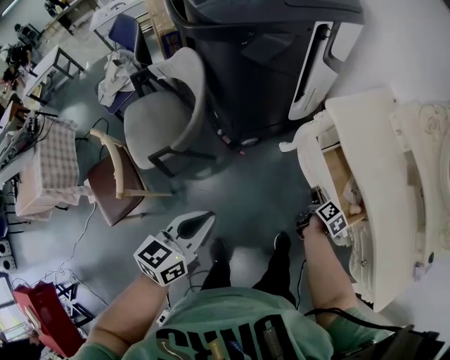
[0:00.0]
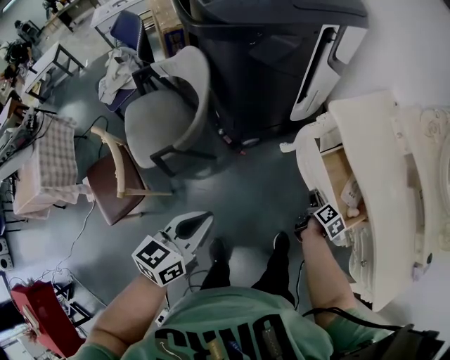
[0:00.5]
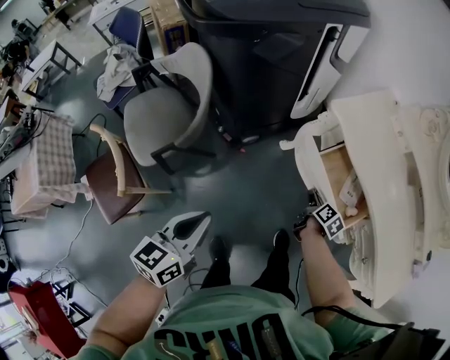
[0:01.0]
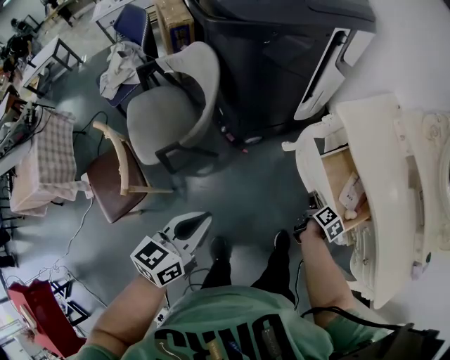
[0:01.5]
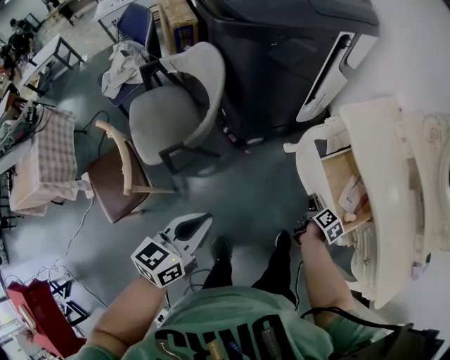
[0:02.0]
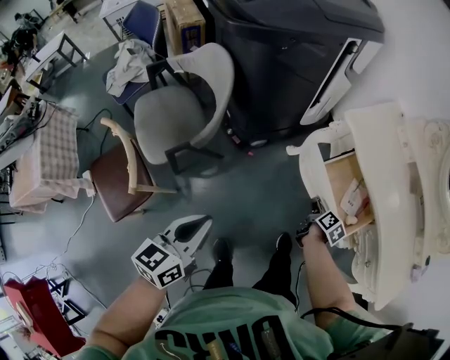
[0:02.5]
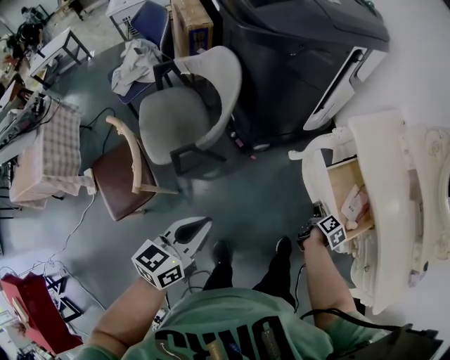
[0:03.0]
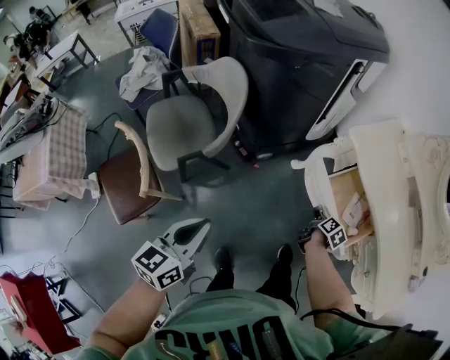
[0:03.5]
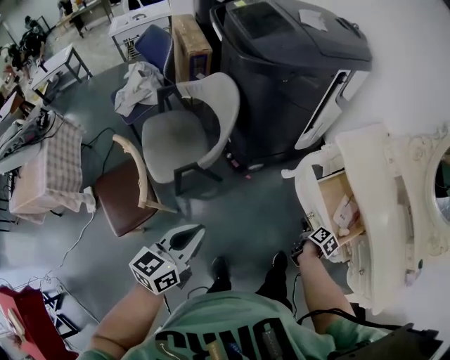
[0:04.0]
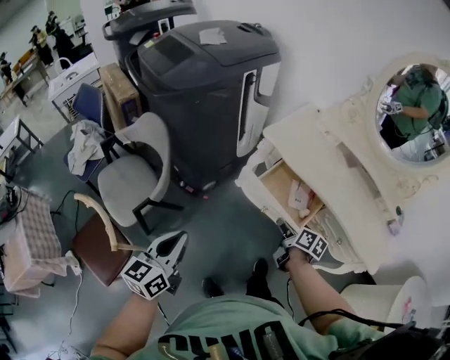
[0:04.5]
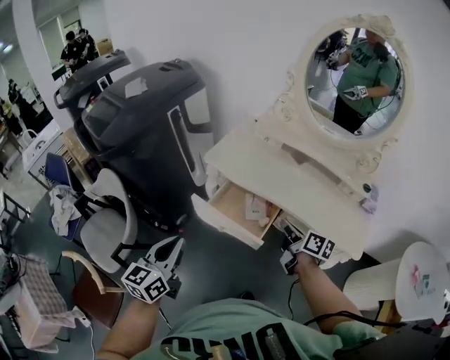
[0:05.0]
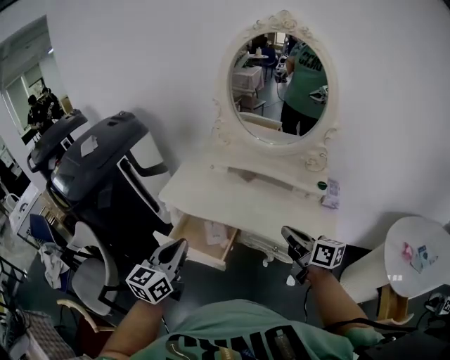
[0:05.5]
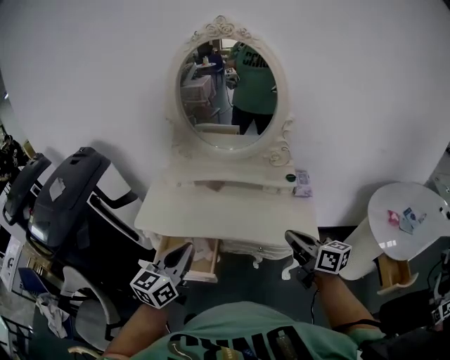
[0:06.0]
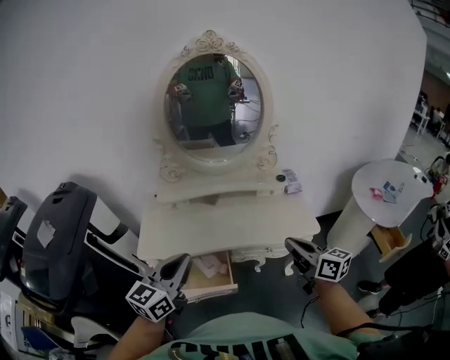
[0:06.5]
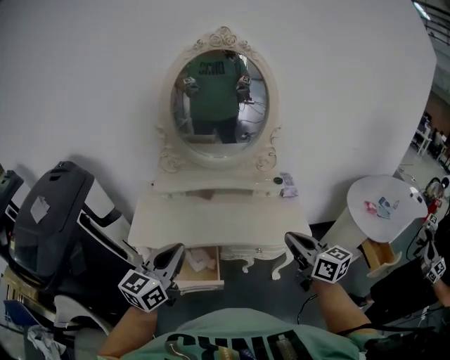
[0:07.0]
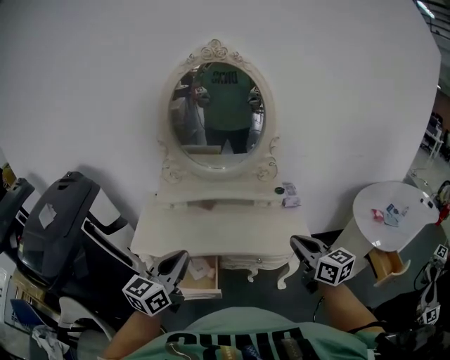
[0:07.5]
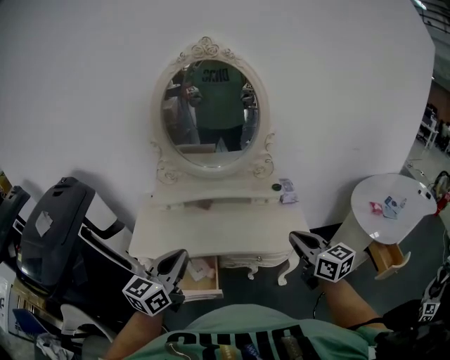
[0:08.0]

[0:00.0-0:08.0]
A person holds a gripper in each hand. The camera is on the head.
0:00.0 to 0:02.0: The left gripper is displaced to the left by some 5 cm; the right gripper ends up approximately 5 cm from where it was.
0:02.0 to 0:04.0: The right gripper moves backward, approximately 5 cm. Meanwhile the left gripper travels to the left by approximately 5 cm.
0:04.0 to 0:06.0: The left gripper ends up roughly 60 cm from where it was, and rotates about 60 degrees. The right gripper changes place by roughly 60 cm, points its fingers approximately 50 degrees further upward, and closes its fingers.
0:06.0 to 0:08.0: The right gripper heads upward, covering roughly 5 cm, reaches roughly 10 cm to the left, then returns, and turns by some 30 degrees. The left gripper travels to the left by approximately 5 cm.

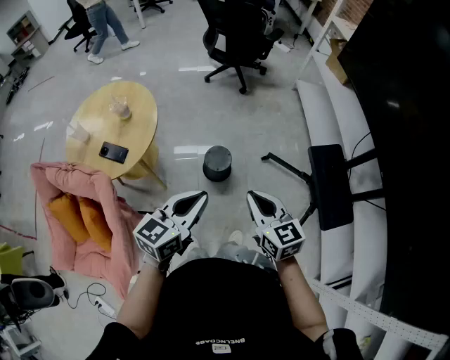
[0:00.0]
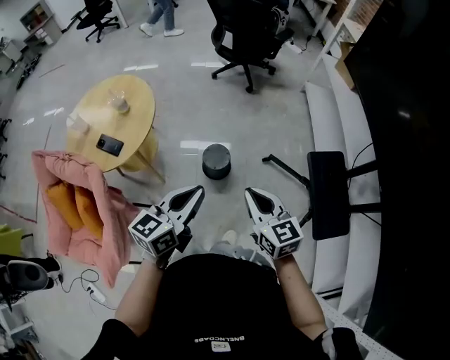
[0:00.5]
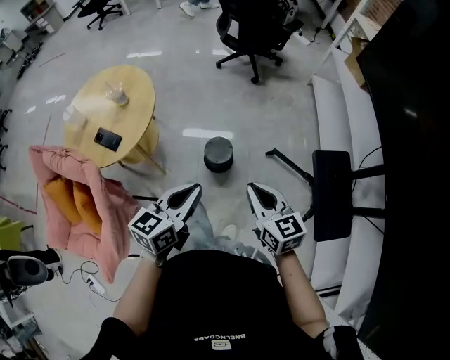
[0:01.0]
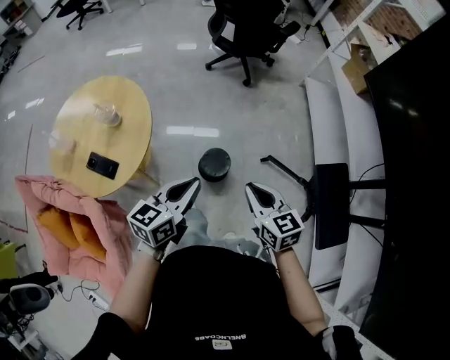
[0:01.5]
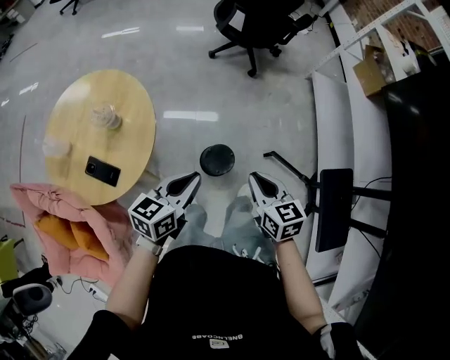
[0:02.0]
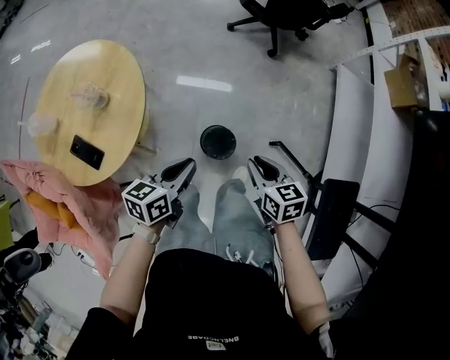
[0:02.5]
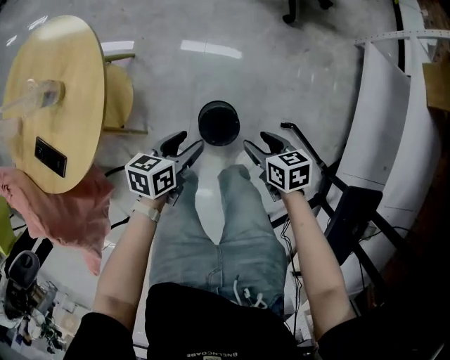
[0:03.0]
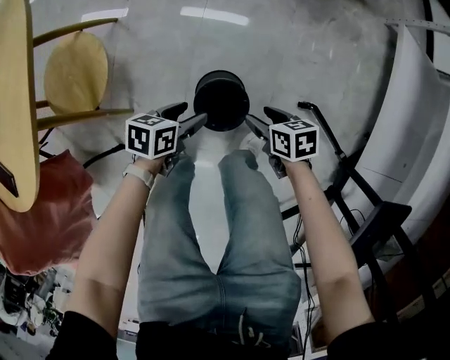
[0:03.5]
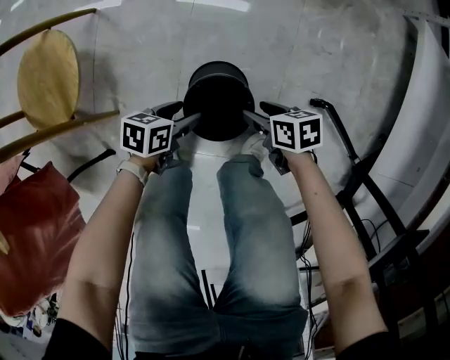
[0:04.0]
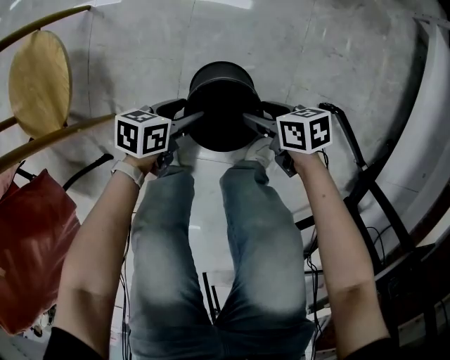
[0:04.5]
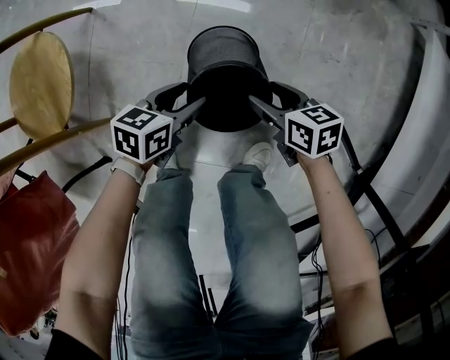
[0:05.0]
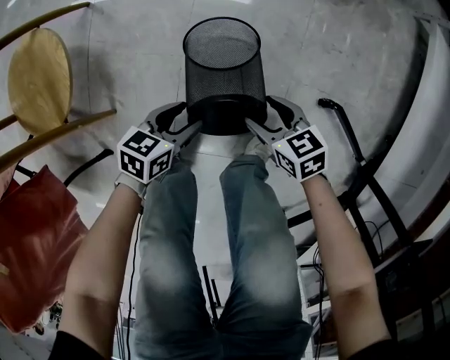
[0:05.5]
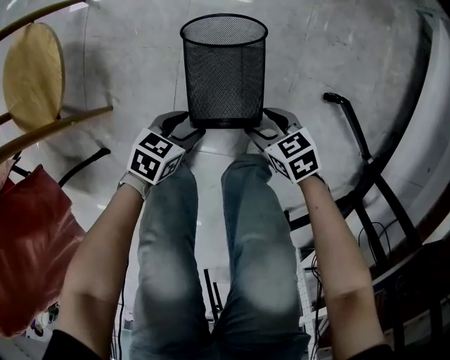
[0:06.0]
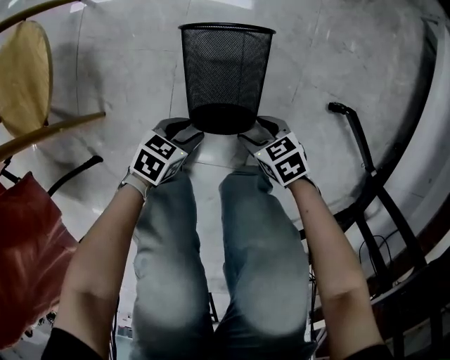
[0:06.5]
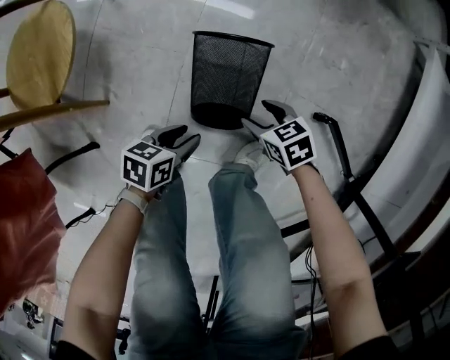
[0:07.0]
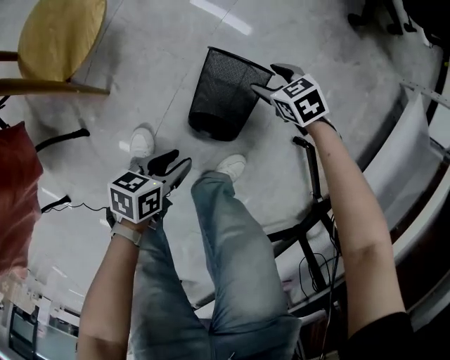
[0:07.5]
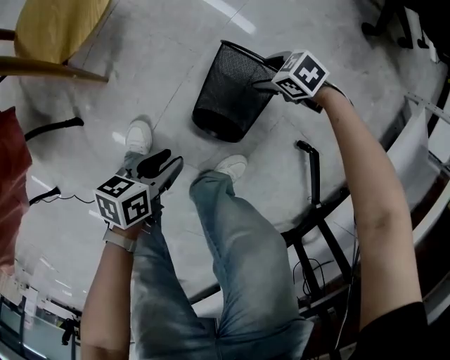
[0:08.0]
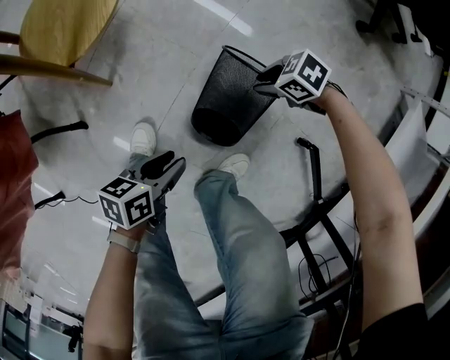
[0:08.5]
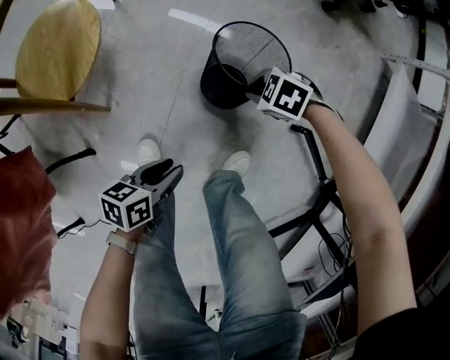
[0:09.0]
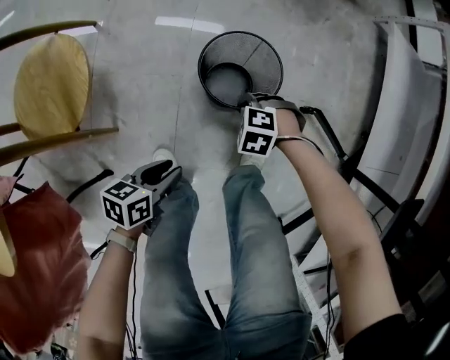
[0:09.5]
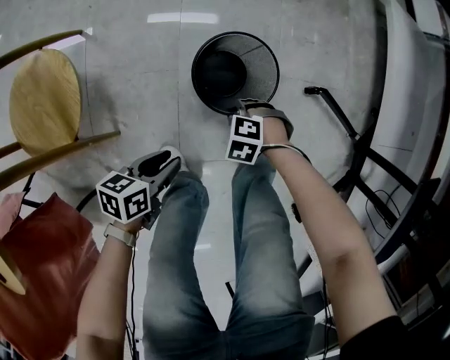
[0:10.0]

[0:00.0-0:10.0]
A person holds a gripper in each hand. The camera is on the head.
0:00.0 to 0:02.0: The right gripper goes roughly 20 cm forward; the left gripper shifts some 25 cm forward and downward.
0:02.0 to 0:04.0: Both grippers move downward, roughly 60 cm. The left gripper turns by about 40 degrees, and opens its fingers. Meanwhile the right gripper rotates roughly 50 degrees, and opens its fingers.
0:04.0 to 0:06.0: The left gripper ends up about 10 cm from where it was. Meanwhile the right gripper changes place by some 5 cm, and rotates some 30 degrees.
0:06.0 to 0:08.0: The right gripper goes up and down, some 10 cm each way, reversing 2 times, and twists about 40 degrees counterclockwise, seen from behind, while the left gripper goes about 10 cm upward, and rotates around the line of its fingers by roughly 40 degrees, counterclockwise from behind.
0:08.0 to 0:10.0: The right gripper goes upward and returns, approximately 10 cm each way, changes its angle by roughly 20 degrees, and closes up. Meanwhile the left gripper ends up about 5 cm from where it was, and rotates some 30 degrees.

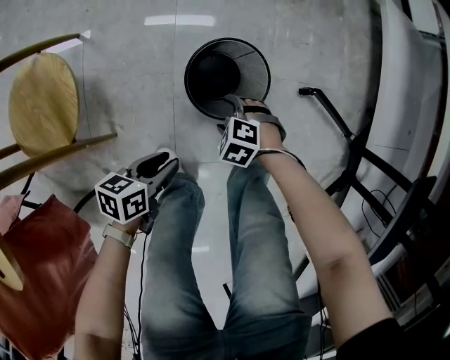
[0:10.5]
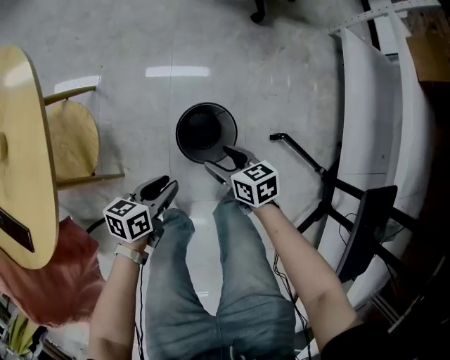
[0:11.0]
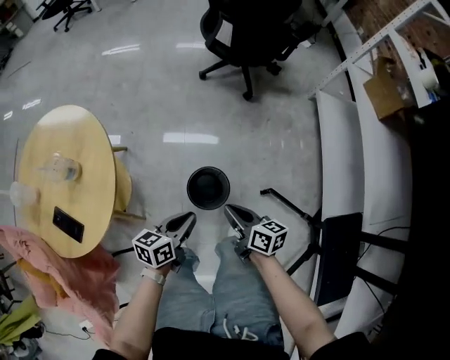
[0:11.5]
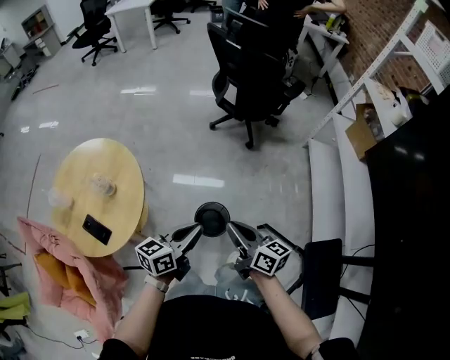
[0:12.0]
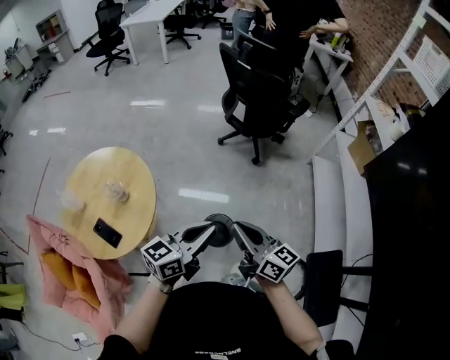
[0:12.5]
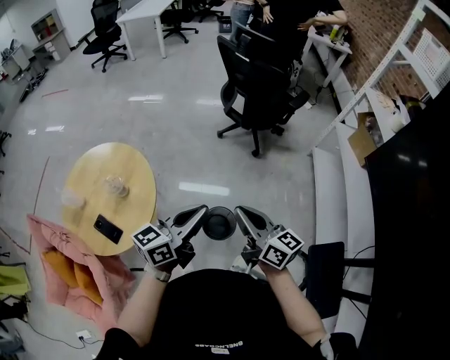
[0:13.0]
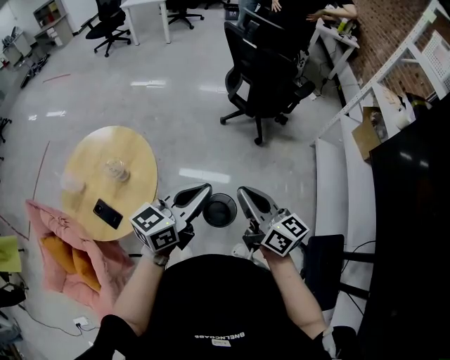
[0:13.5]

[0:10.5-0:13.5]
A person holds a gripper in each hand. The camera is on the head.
0:10.5 to 0:12.0: Both grippers move upward, approximately 60 cm. The right gripper angles its fingers upward, by approximately 70 degrees, and closes its fingers. Meanwhile the left gripper turns by about 40 degrees, and closes.
0:12.0 to 0:13.5: Both grippers move upward, about 15 cm.

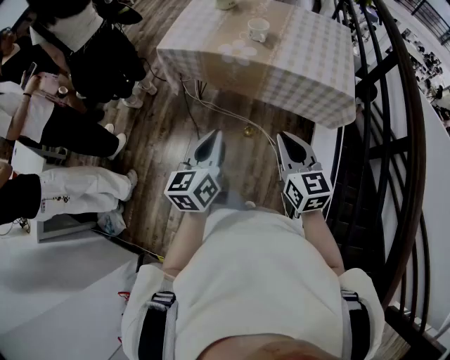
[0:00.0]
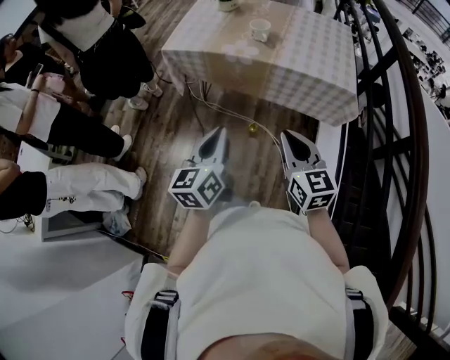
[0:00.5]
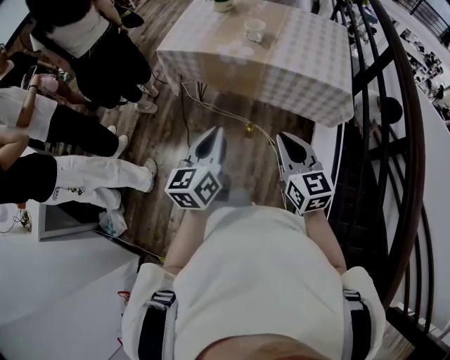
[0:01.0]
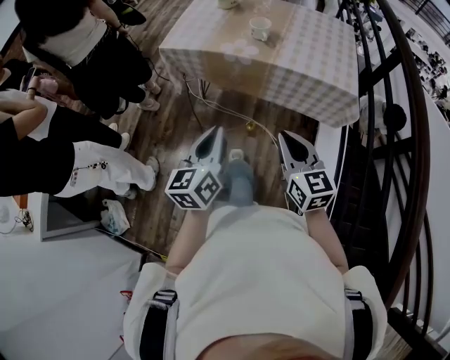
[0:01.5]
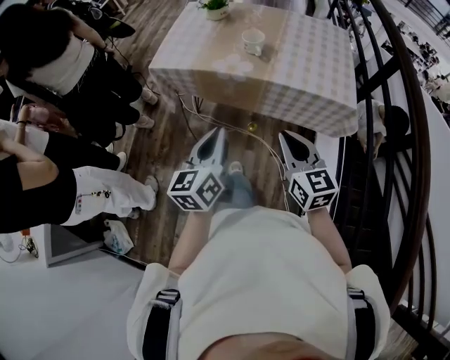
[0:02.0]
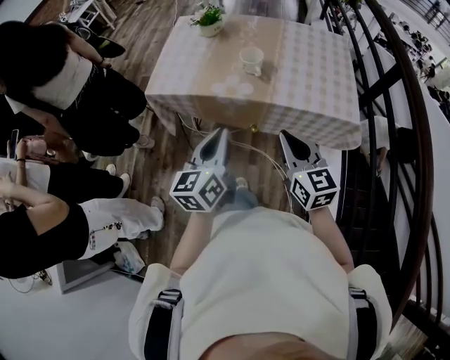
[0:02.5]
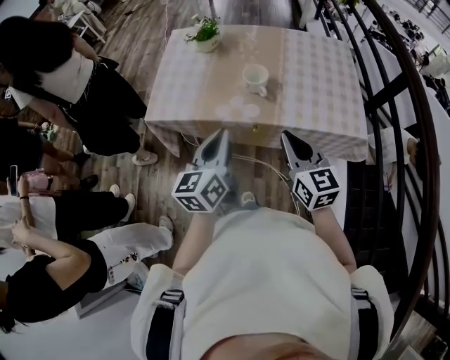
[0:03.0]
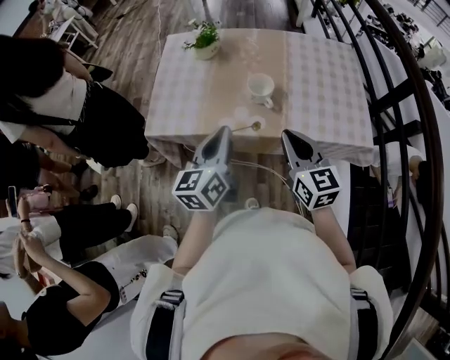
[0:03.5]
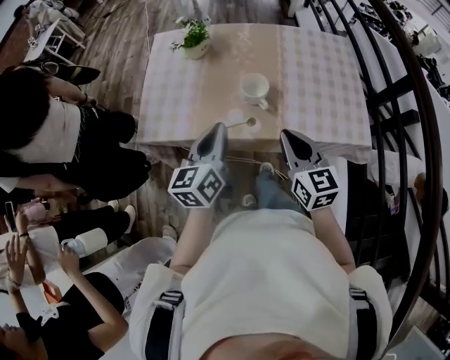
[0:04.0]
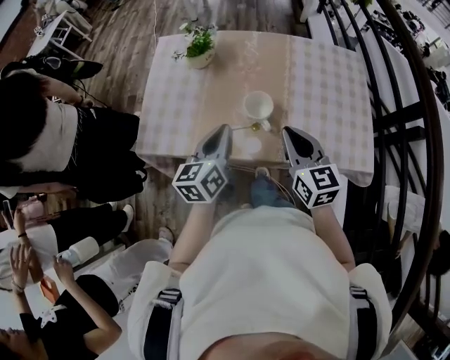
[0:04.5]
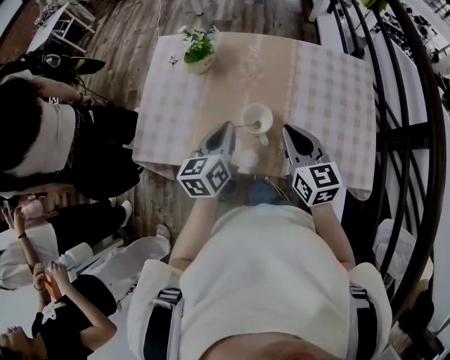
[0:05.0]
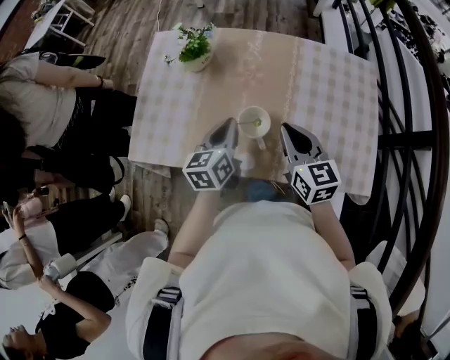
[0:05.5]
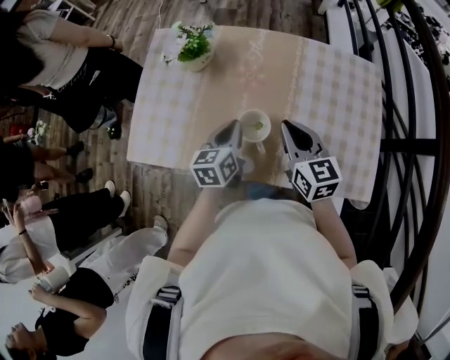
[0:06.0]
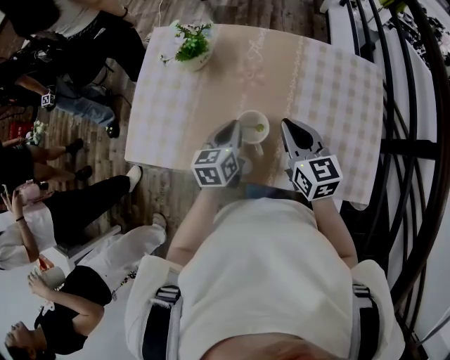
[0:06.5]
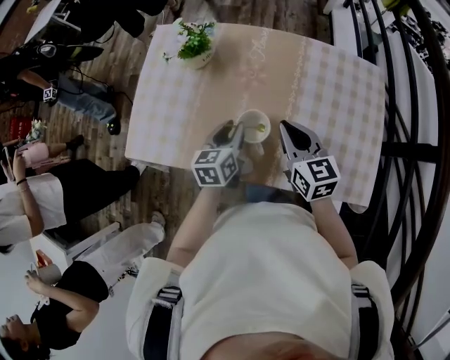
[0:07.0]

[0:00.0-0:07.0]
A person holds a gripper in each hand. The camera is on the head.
0:00.0 to 0:02.0: The grippers both shift forward by some 10 cm.
0:02.0 to 0:03.5: The grippers both shift forward by about 25 cm.
0:03.5 to 0:05.0: The right gripper shifts approximately 15 cm forward. Meanwhile the left gripper travels forward and downward by roughly 20 cm.
0:05.0 to 0:07.0: The left gripper goes about 10 cm downward and forward, and opens up. Meanwhile the right gripper is displaced forward by about 5 cm.
